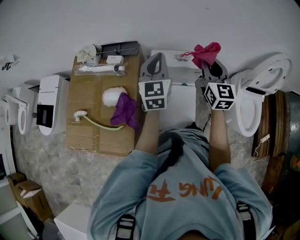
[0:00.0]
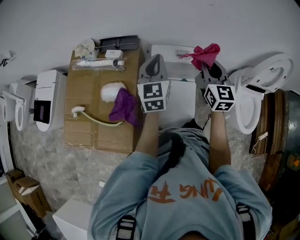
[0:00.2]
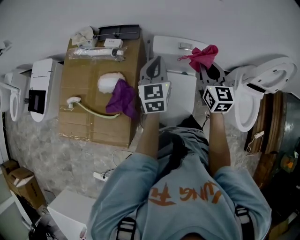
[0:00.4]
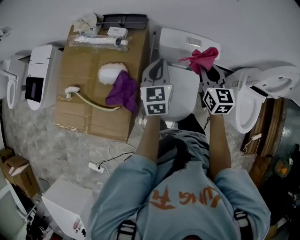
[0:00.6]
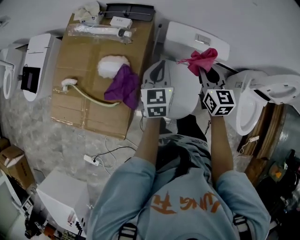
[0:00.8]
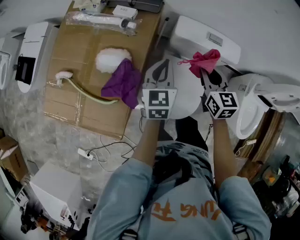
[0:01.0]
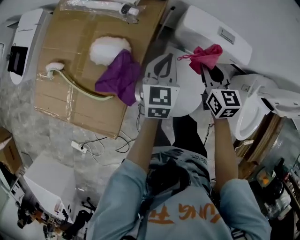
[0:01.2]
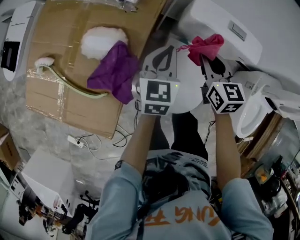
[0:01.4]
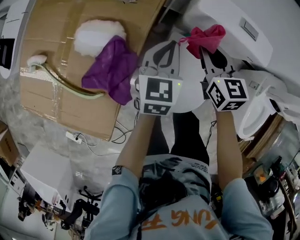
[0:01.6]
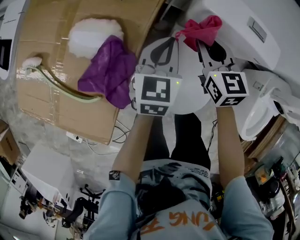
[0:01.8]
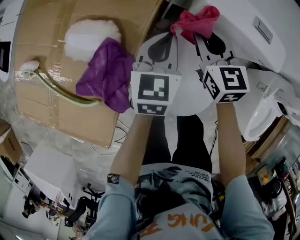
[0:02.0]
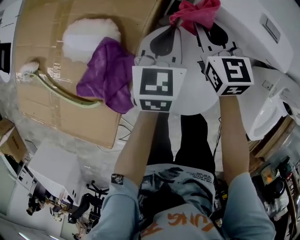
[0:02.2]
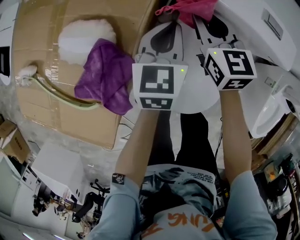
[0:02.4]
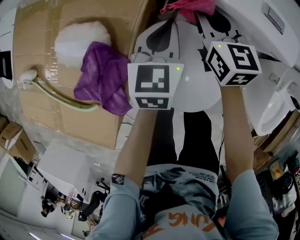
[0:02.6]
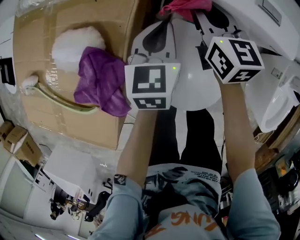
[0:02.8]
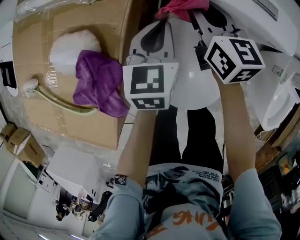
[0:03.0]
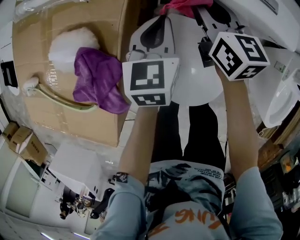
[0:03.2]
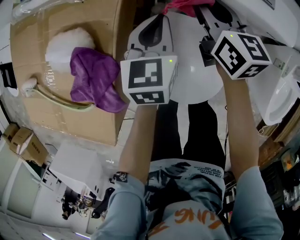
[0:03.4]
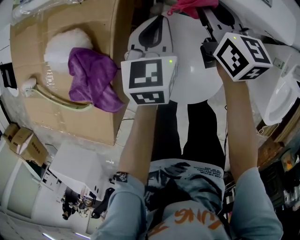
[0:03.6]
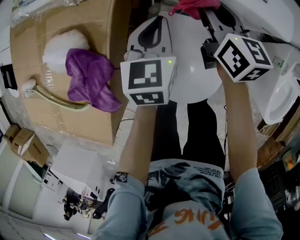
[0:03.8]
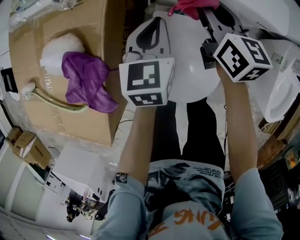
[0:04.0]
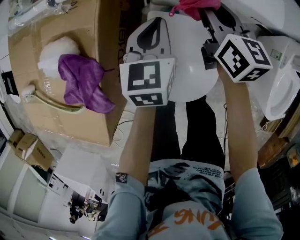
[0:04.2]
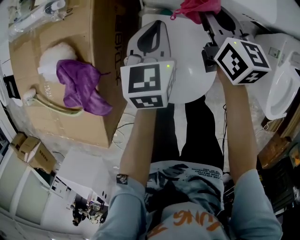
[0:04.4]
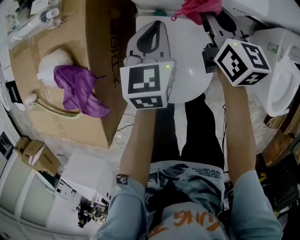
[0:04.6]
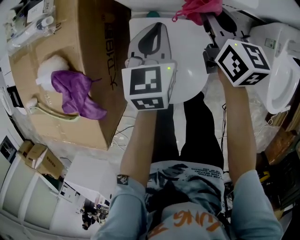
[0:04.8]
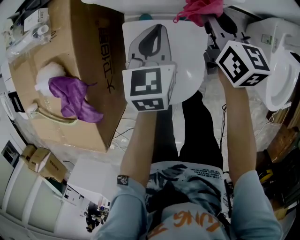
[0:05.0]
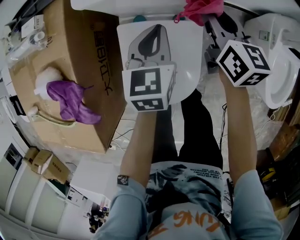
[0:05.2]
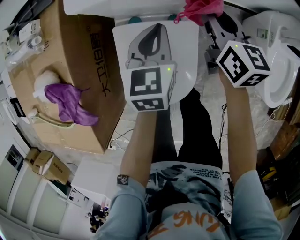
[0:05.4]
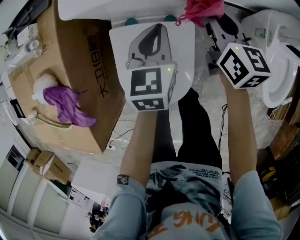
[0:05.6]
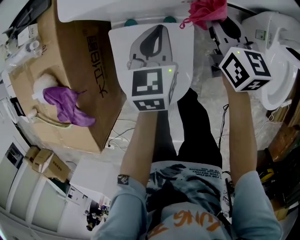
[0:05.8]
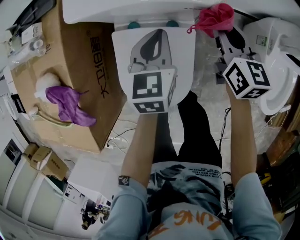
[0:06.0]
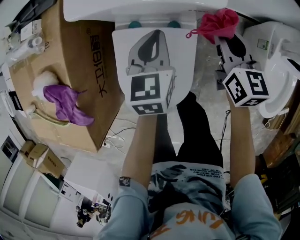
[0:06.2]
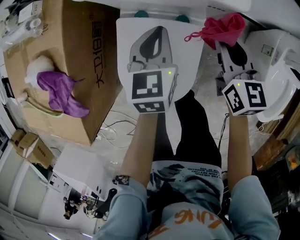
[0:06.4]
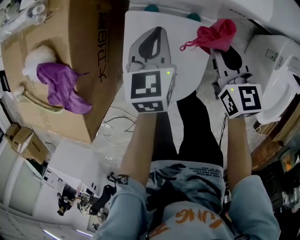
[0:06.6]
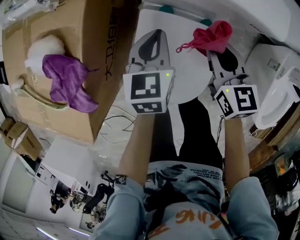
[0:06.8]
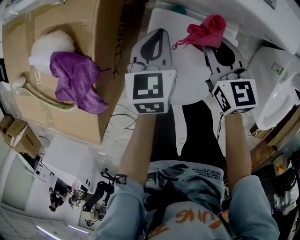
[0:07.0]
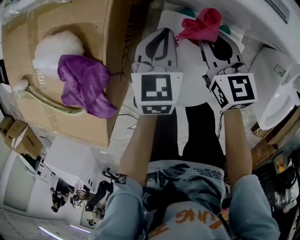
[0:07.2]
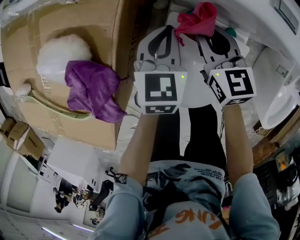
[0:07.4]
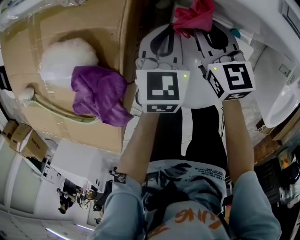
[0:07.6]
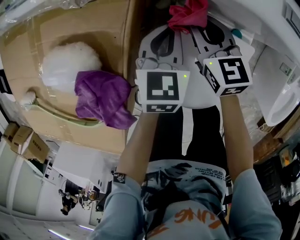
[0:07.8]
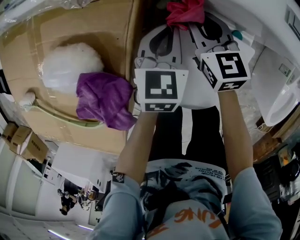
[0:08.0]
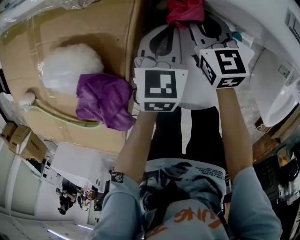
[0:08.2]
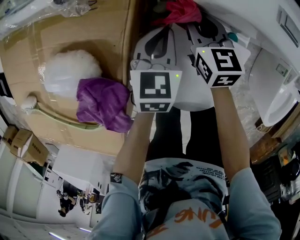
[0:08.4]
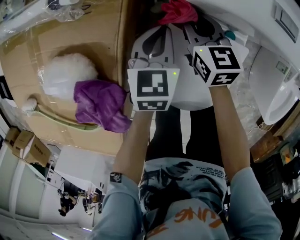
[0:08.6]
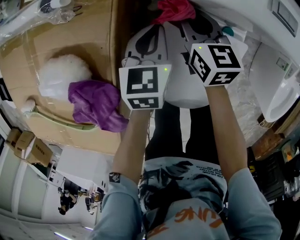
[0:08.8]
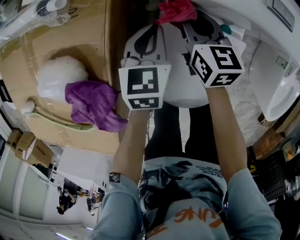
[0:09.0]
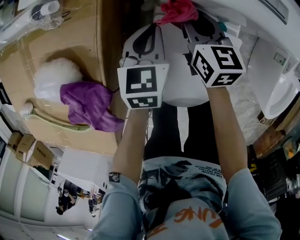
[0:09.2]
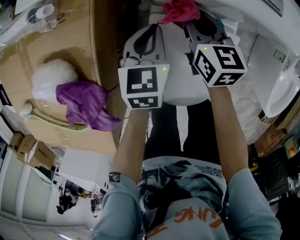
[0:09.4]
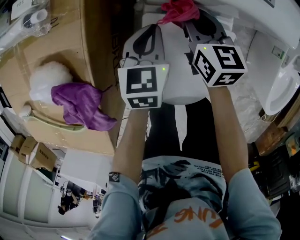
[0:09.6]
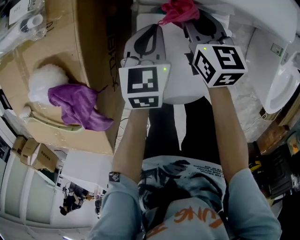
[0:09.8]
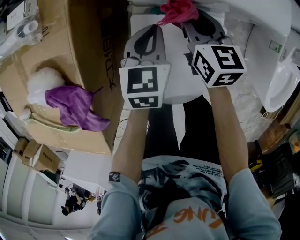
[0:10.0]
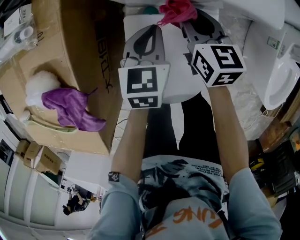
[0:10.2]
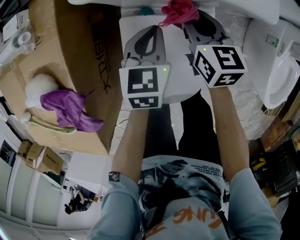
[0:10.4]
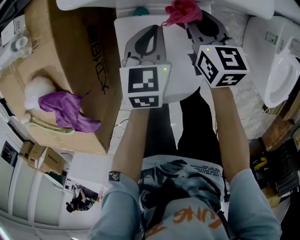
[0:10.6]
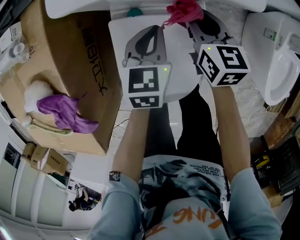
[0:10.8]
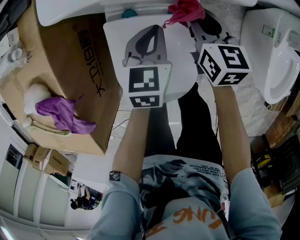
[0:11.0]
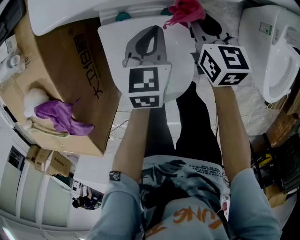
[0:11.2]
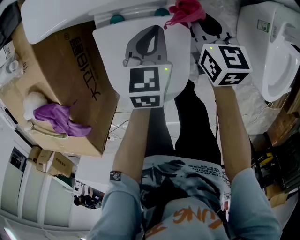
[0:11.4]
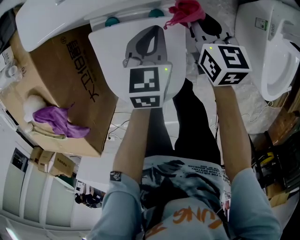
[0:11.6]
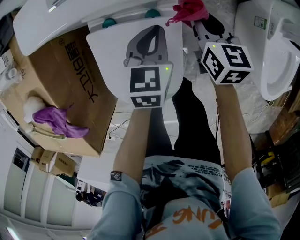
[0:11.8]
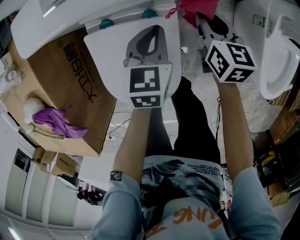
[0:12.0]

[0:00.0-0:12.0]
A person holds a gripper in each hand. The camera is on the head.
0:00.0 to 0:01.6: The right gripper shifts about 40 cm downward and to the left, and rotates some 40 degrees. Meanwhile the left gripper shifts about 35 cm downward, and swivels approximately 30 degrees.
0:01.6 to 0:03.0: The right gripper travels forward by some 10 cm; the left gripper moves downward, about 5 cm.
0:03.0 to 0:04.4: The left gripper moves to the right, some 10 cm; the right gripper is displaced to the right by roughly 15 cm.
0:04.4 to 0:06.0: The two grippers go some 20 cm to the right.
0:06.0 to 0:07.6: Both grippers travel together to the left, roughly 30 cm. The right gripper turns by approximately 30 degrees.
0:07.6 to 0:09.0: The grippers make only small movements.
0:09.0 to 0:10.4: Both grippers move to the right, some 15 cm.
0:10.4 to 0:12.0: The grippers both shift to the right by approximately 20 cm.

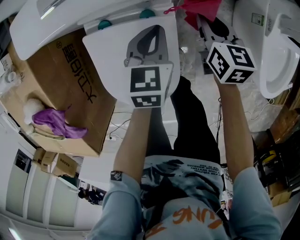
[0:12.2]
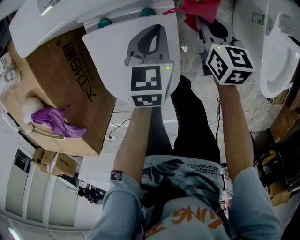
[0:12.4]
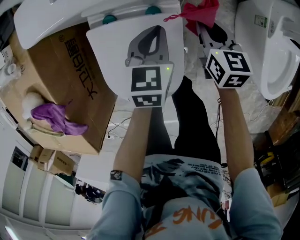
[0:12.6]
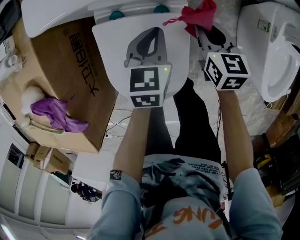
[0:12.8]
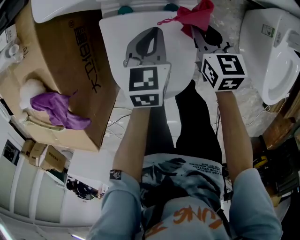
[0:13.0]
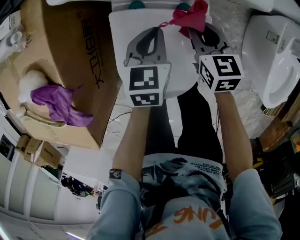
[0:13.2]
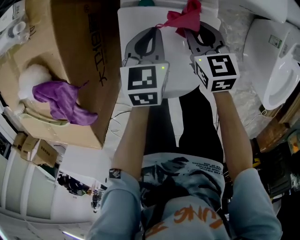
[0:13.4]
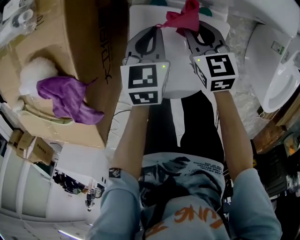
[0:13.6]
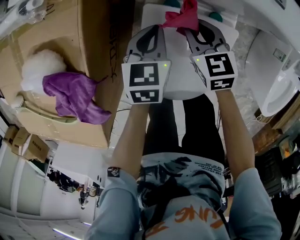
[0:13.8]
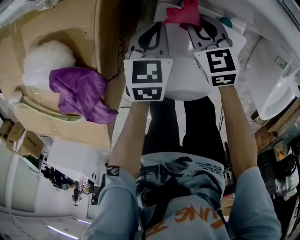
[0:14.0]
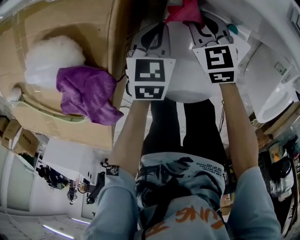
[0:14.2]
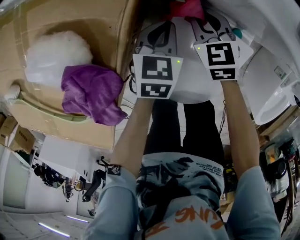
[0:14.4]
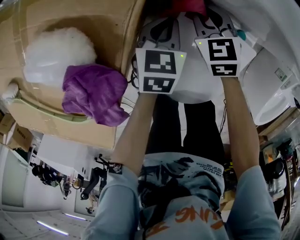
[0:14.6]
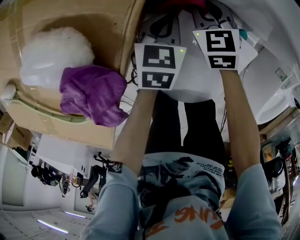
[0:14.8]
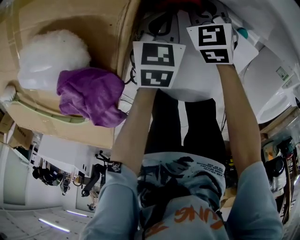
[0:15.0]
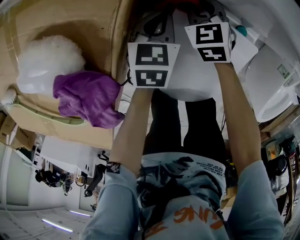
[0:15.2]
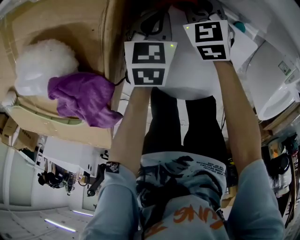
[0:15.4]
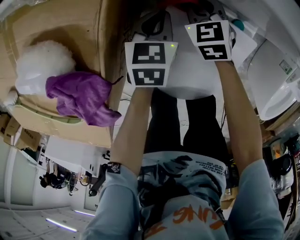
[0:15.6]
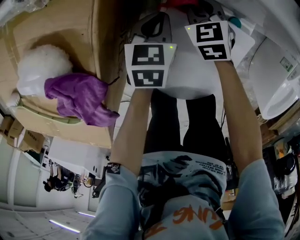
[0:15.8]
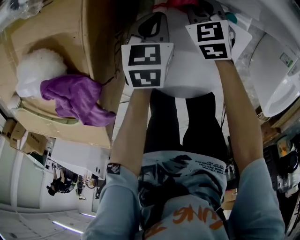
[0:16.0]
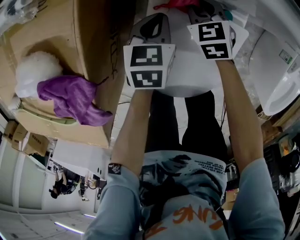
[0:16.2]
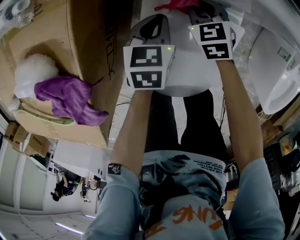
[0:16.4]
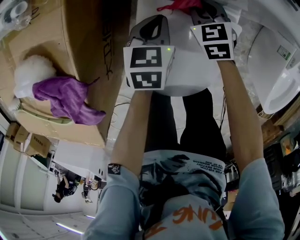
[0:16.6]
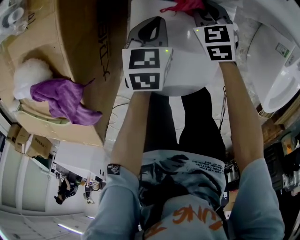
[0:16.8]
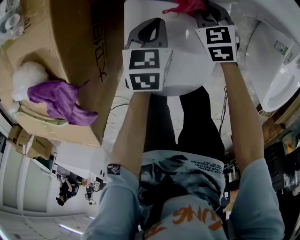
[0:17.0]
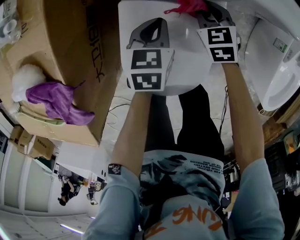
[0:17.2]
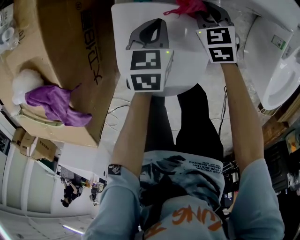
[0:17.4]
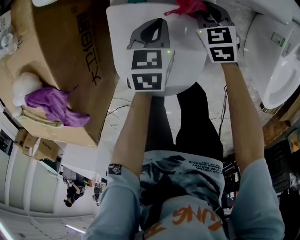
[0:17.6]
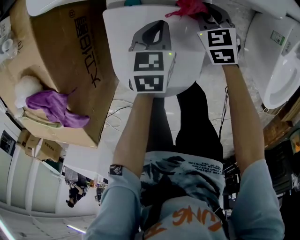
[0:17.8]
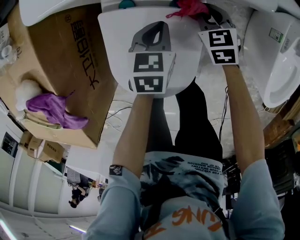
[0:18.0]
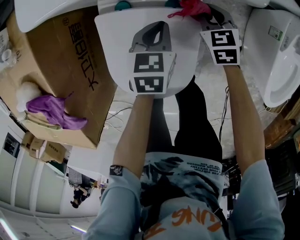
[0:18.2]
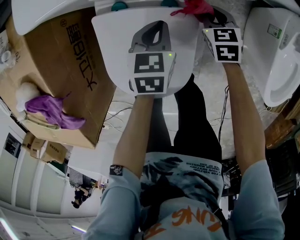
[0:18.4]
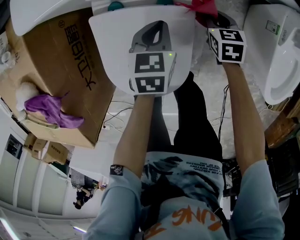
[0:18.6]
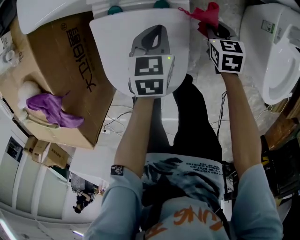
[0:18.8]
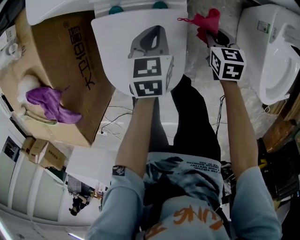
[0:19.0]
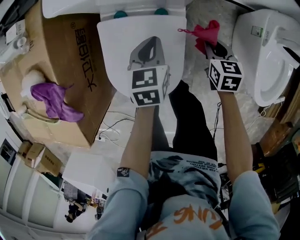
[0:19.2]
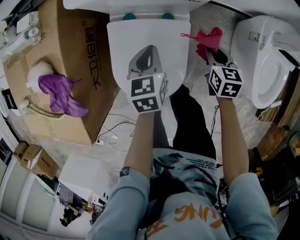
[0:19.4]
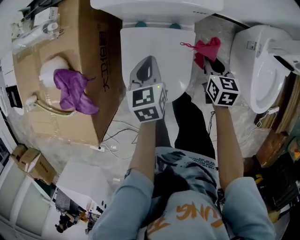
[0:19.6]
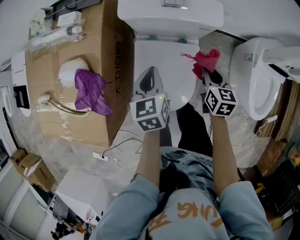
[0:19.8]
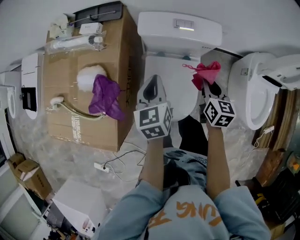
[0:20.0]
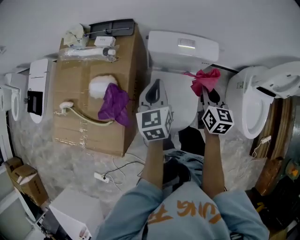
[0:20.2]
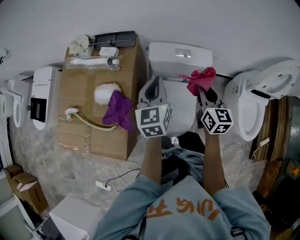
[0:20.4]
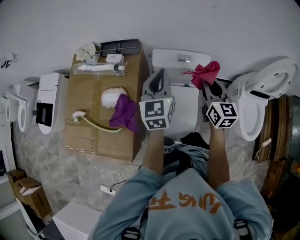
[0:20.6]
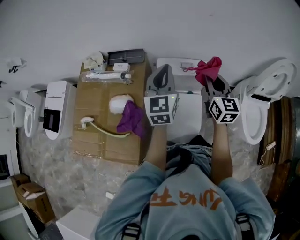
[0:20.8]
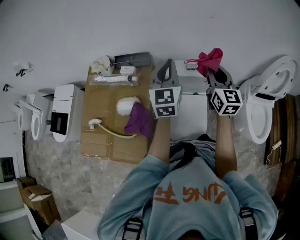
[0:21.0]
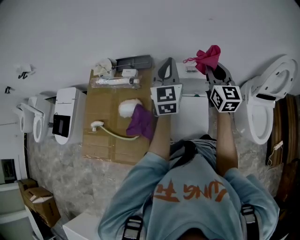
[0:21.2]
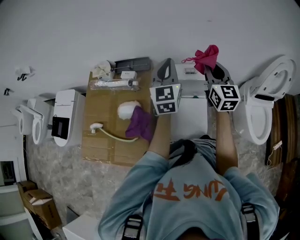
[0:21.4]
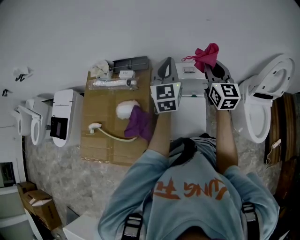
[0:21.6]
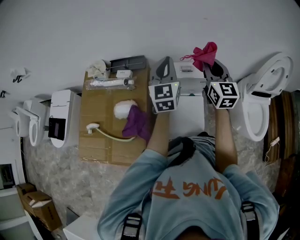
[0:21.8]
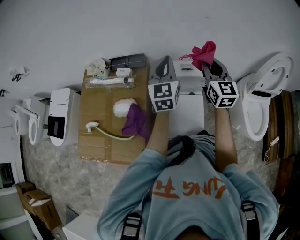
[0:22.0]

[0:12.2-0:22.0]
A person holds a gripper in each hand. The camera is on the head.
0:12.2 to 0:13.6: Both grippers travel together to the left, roughly 25 cm. The right gripper rotates roughly 30 degrees.
0:13.6 to 0:15.0: Both grippers travel together to the left, forward and downward, approximately 15 cm. The right gripper swivels roughly 30 degrees.
0:15.0 to 0:16.4: Both grippers move to the right, about 10 cm.
0:16.4 to 0:17.8: The grippers both shift to the right by about 15 cm.
0:17.8 to 0:19.2: The right gripper goes about 15 cm to the right, backward and upward, and rotates about 30 degrees, while the left gripper shifts roughly 5 cm upward.
0:19.2 to 0:20.6: The two grippers go roughly 50 cm upward and to the left. The right gripper tilts its fingers some 40 degrees upward; the left gripper angles its fingers upward, by approximately 40 degrees.
0:20.6 to 0:22.0: The two grippers go about 10 cm upward.

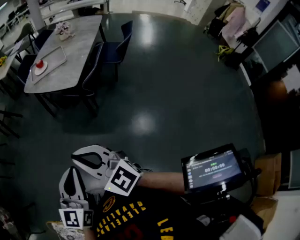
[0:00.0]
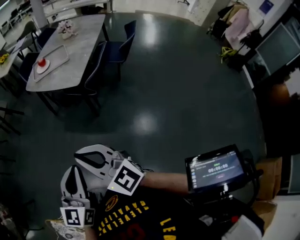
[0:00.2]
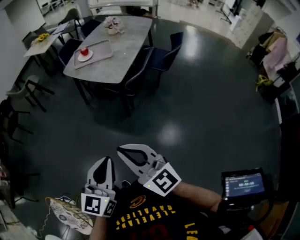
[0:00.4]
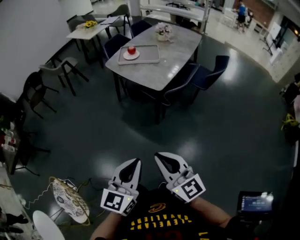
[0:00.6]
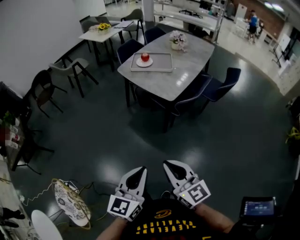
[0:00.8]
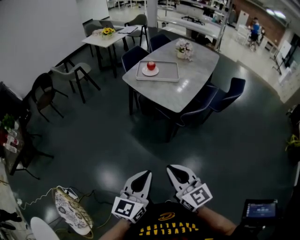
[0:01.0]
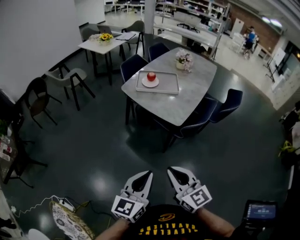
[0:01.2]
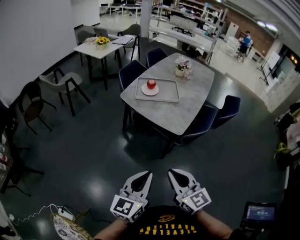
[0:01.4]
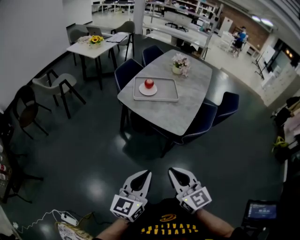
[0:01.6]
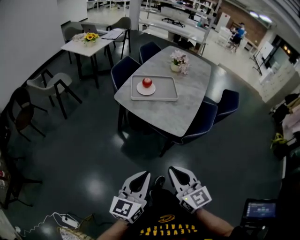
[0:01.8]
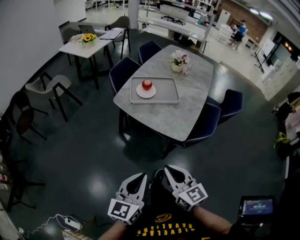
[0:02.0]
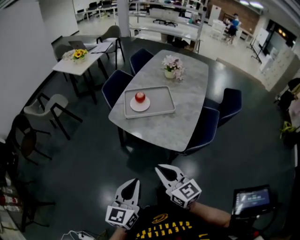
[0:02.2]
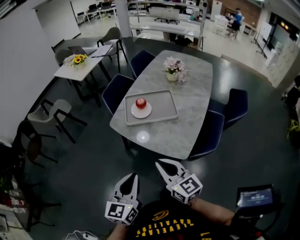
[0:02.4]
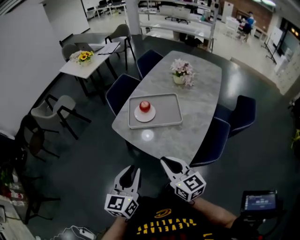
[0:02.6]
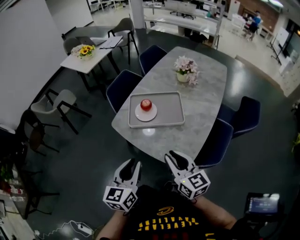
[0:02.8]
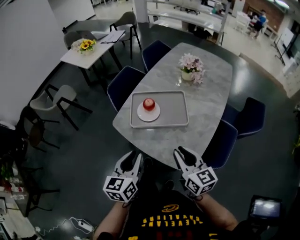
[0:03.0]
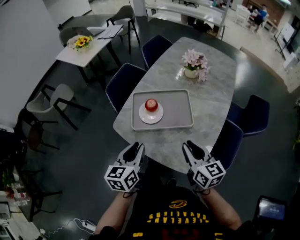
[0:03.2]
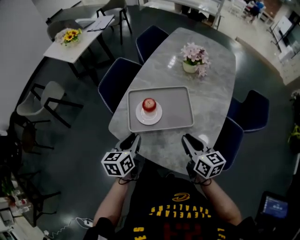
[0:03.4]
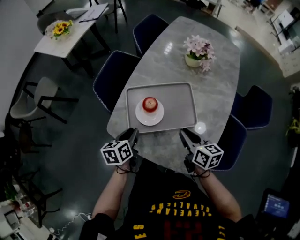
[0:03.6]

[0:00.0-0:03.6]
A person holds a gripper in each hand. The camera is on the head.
0:00.0 to 0:01.8: The left gripper is displaced forward and to the left by roughly 35 cm. Meanwhile the right gripper moves forward, approximately 30 cm, and turns by roughly 20 degrees.
0:01.8 to 0:03.6: Both grippers are carried forward, roughly 50 cm. The left gripper points its fingers approximately 40 degrees further downward, while the right gripper changes its angle by about 40 degrees.
